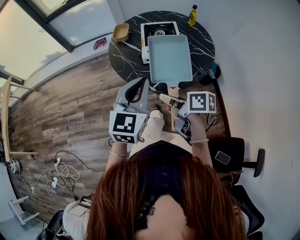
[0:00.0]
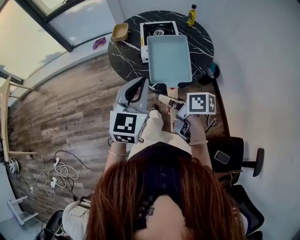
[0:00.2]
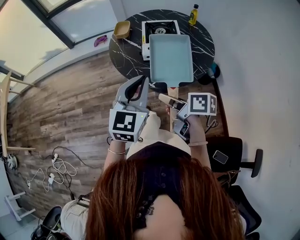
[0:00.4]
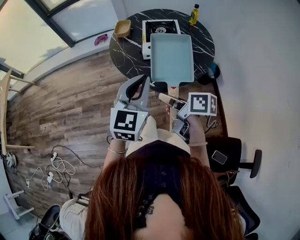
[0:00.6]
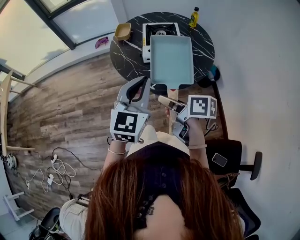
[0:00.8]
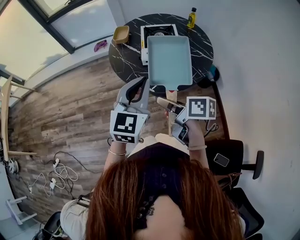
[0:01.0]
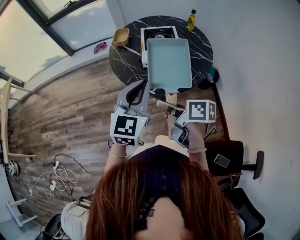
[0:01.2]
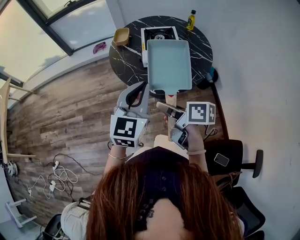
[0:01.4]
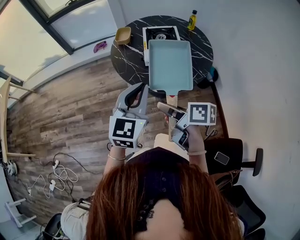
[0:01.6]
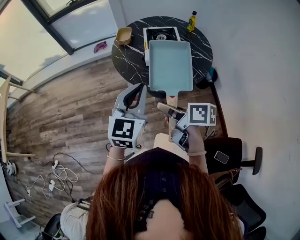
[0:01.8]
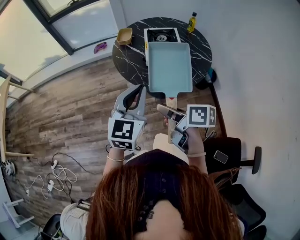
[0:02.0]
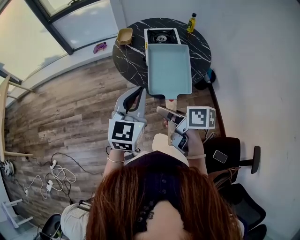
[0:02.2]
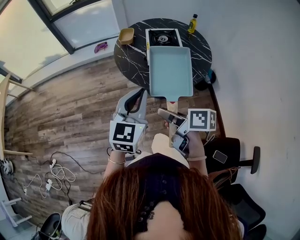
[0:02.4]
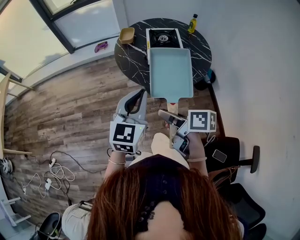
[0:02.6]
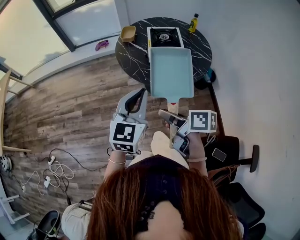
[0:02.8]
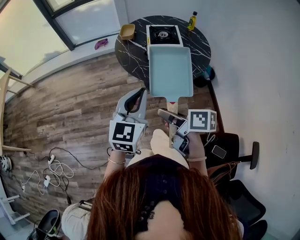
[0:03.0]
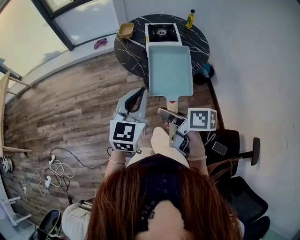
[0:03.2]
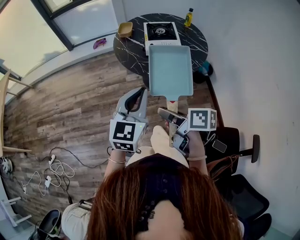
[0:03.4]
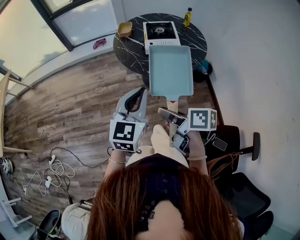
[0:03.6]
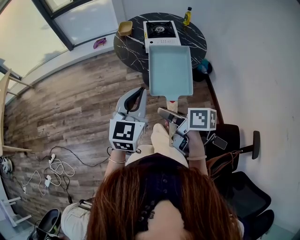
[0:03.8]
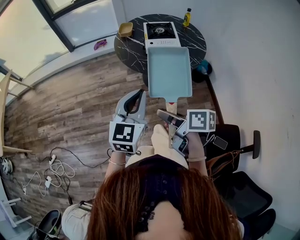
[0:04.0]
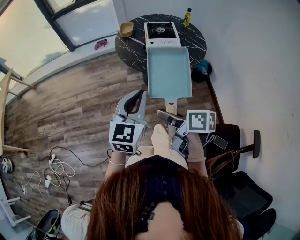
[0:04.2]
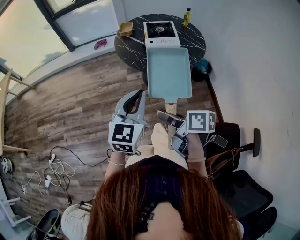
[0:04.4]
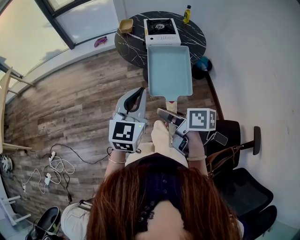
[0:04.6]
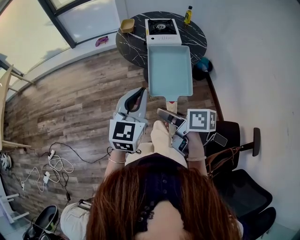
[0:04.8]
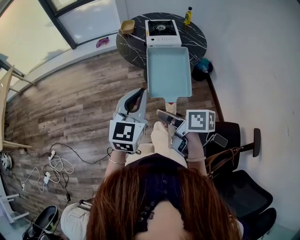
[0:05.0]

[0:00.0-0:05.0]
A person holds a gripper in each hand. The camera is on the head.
0:00.0 to 0:01.6: The left gripper ends up approximately 5 cm from where it was, while the right gripper moves about 10 cm.
0:01.6 to 0:03.4: The right gripper moves backward, roughly 15 cm. Meanwhile the left gripper is displaced backward and to the left by about 15 cm.
0:03.4 to 0:05.0: Both grippers travel together backward, approximately 5 cm.

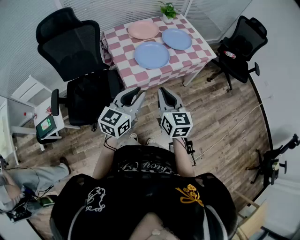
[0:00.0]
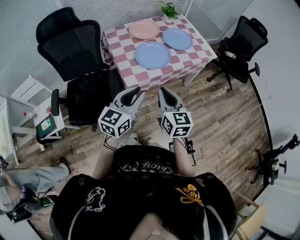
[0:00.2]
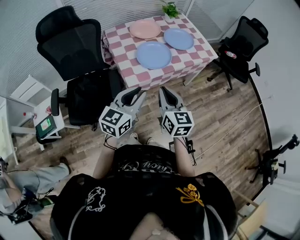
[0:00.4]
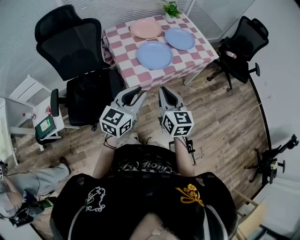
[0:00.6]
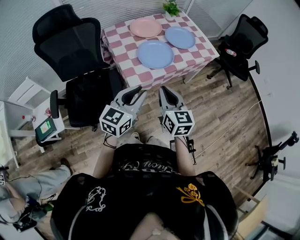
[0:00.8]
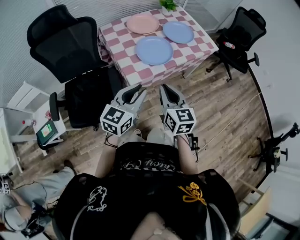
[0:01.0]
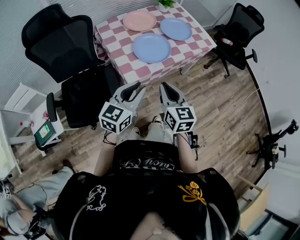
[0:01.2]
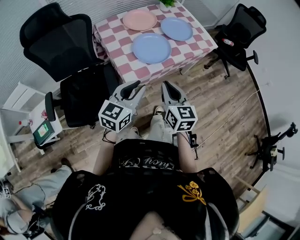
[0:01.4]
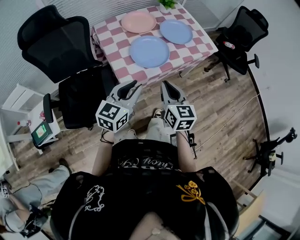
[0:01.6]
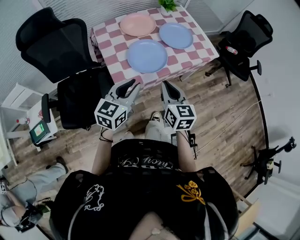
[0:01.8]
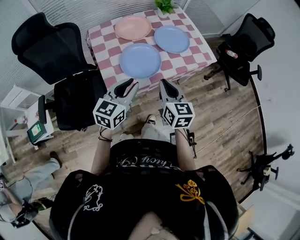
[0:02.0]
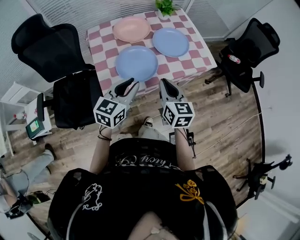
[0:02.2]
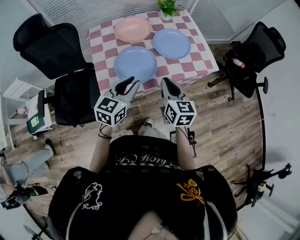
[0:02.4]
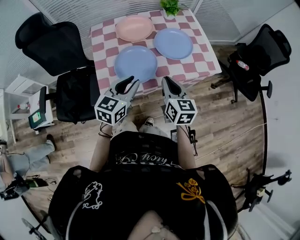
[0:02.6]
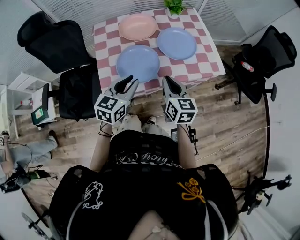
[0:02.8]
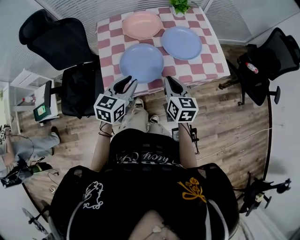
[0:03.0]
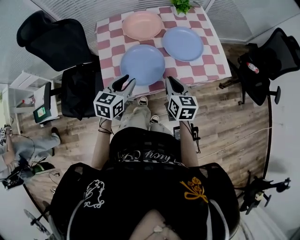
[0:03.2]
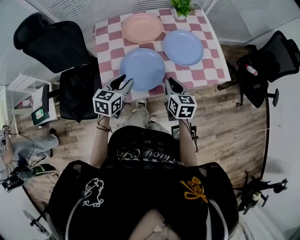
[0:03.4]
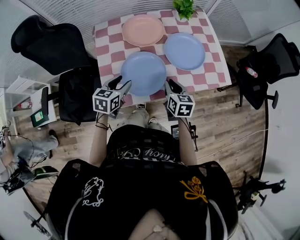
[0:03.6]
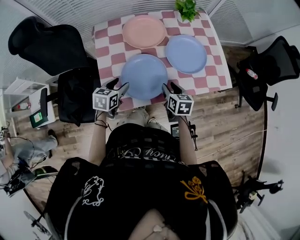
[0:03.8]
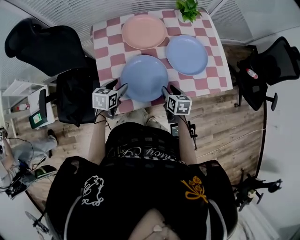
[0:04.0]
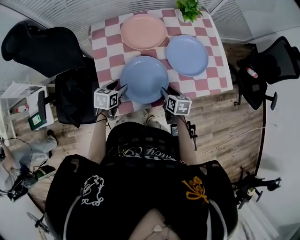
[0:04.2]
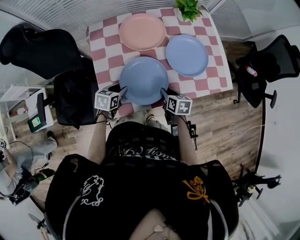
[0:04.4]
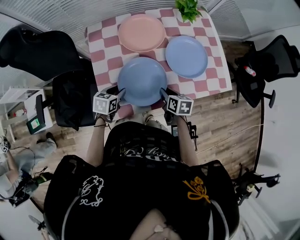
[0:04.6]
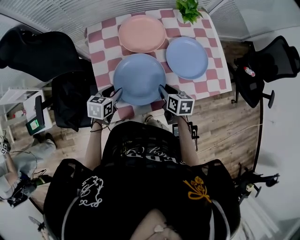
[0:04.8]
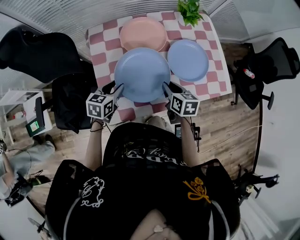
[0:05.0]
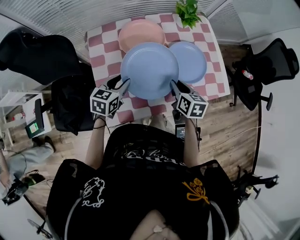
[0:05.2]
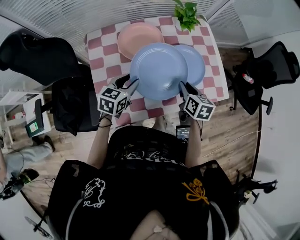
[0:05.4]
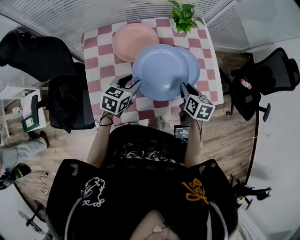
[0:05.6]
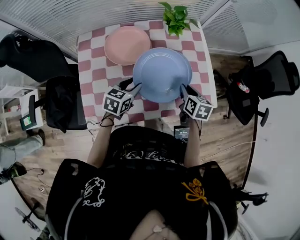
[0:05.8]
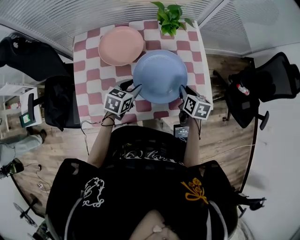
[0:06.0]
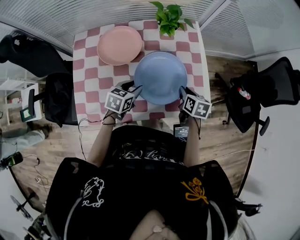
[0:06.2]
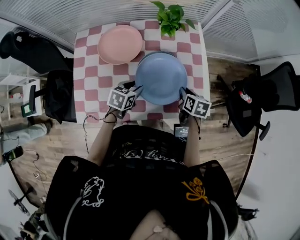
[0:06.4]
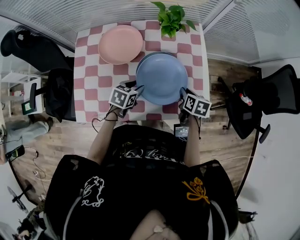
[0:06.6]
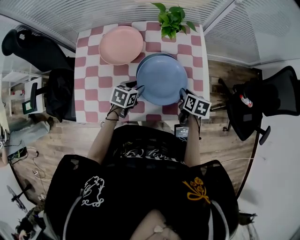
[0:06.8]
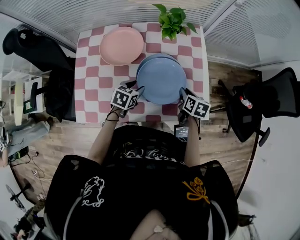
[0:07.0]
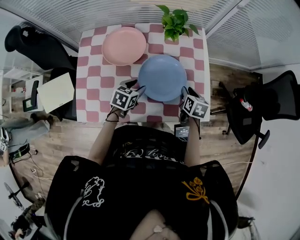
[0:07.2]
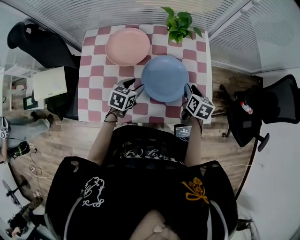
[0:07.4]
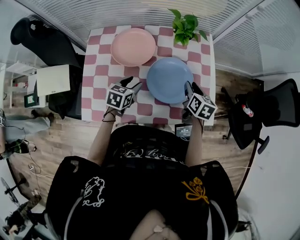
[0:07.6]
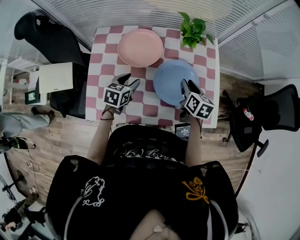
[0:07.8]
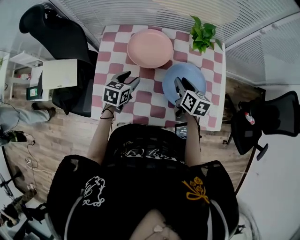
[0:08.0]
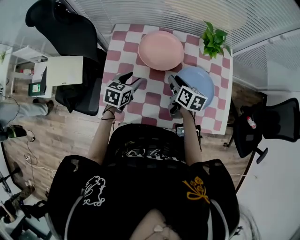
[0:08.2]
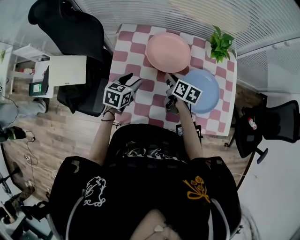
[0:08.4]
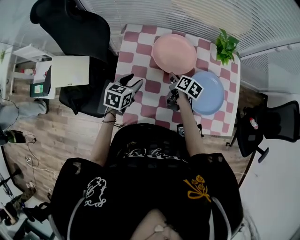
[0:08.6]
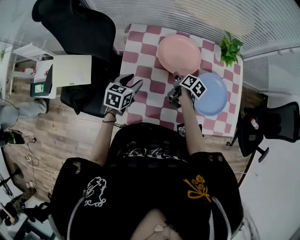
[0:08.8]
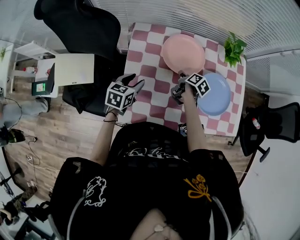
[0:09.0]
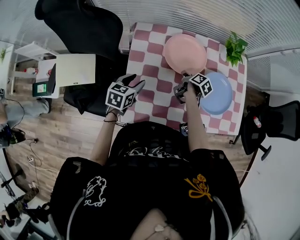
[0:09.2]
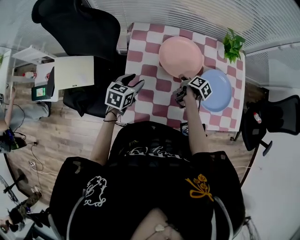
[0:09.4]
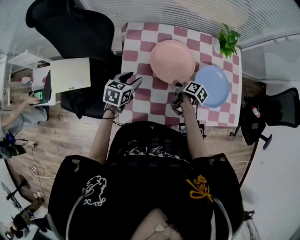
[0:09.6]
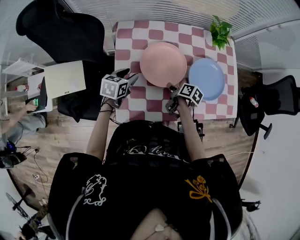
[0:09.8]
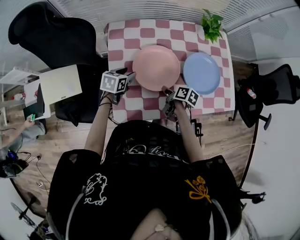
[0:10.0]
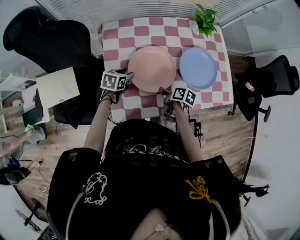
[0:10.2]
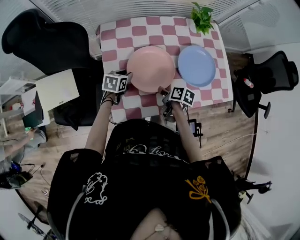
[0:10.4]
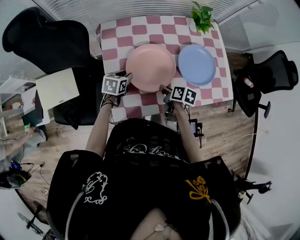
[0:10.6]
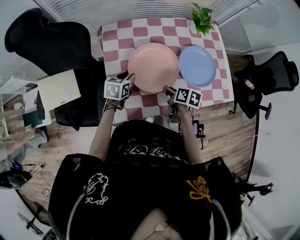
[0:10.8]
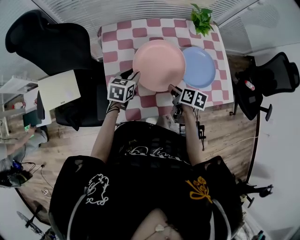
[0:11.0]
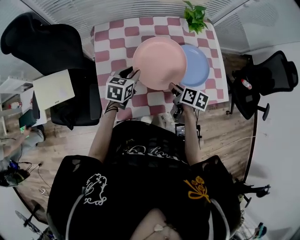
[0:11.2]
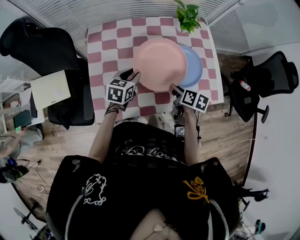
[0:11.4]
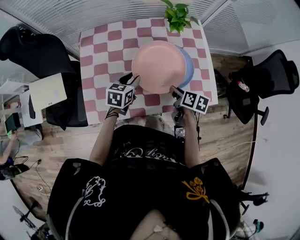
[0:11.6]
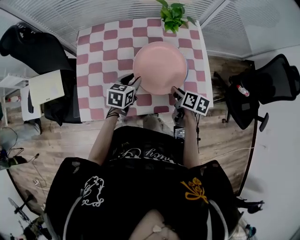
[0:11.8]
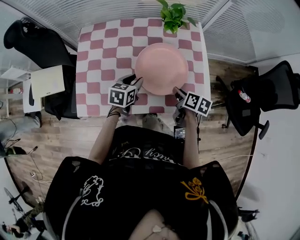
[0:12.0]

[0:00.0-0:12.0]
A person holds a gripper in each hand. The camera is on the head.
0:00.0 to 0:01.6: Both grippers move forward, approximately 10 cm.
0:01.6 to 0:03.0: The two grippers go approximately 20 cm forward and to the right. The left gripper rotates roughly 20 degrees.
0:03.0 to 0:04.4: The left gripper is displaced downward, to the left and forward by roughly 25 cm, and turns by approximately 30 degrees; the right gripper shifts some 20 cm downward and forward, and turns by approximately 30 degrees.
0:04.4 to 0:06.0: The grippers both shift to the right, forward and upward by some 25 cm.
0:06.0 to 0:07.6: The right gripper travels forward by approximately 5 cm.
0:07.6 to 0:09.0: The right gripper shifts roughly 30 cm to the left and downward, and changes its angle by roughly 40 degrees. Meanwhile the left gripper shifts some 25 cm to the left.
0:09.0 to 0:10.4: The right gripper goes roughly 20 cm backward. The left gripper heads downward, covering about 10 cm.
0:10.4 to 0:12.0: Both grippers move to the right, some 25 cm.

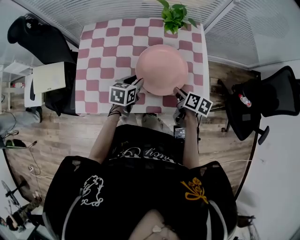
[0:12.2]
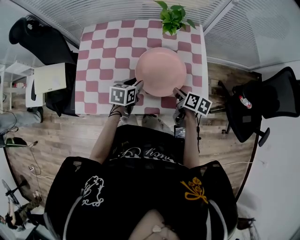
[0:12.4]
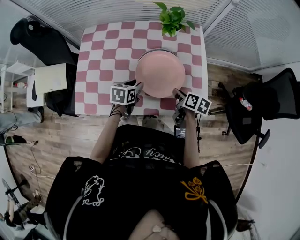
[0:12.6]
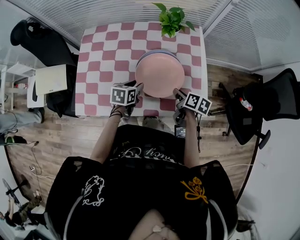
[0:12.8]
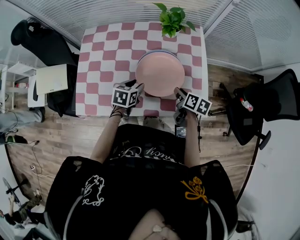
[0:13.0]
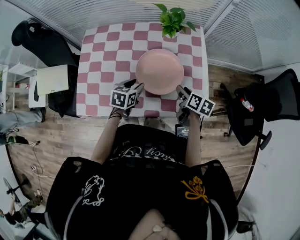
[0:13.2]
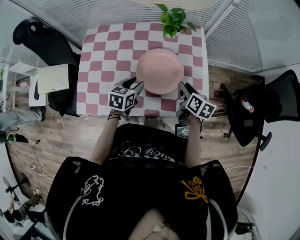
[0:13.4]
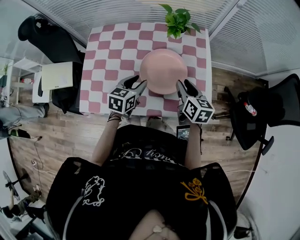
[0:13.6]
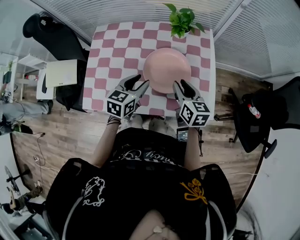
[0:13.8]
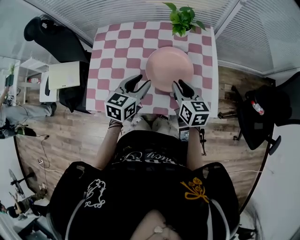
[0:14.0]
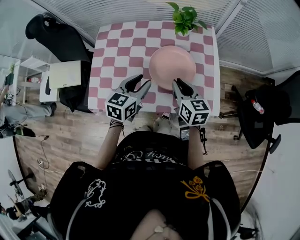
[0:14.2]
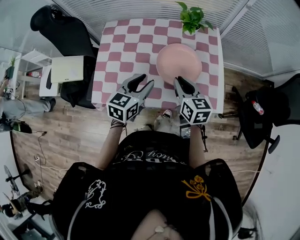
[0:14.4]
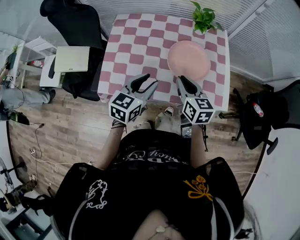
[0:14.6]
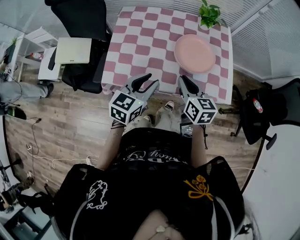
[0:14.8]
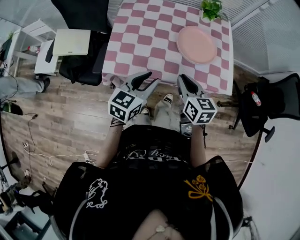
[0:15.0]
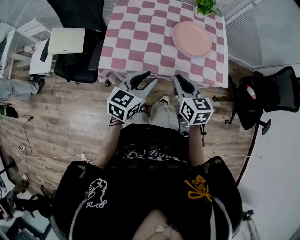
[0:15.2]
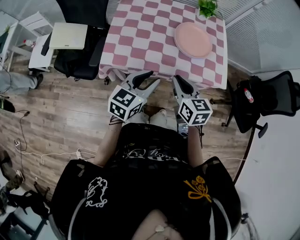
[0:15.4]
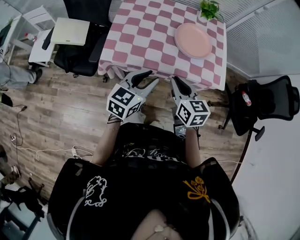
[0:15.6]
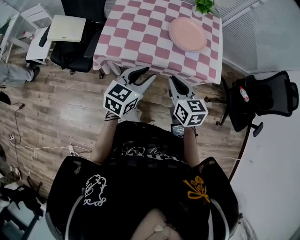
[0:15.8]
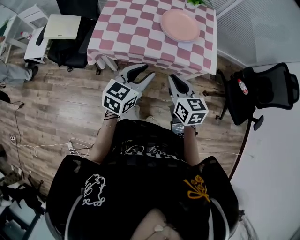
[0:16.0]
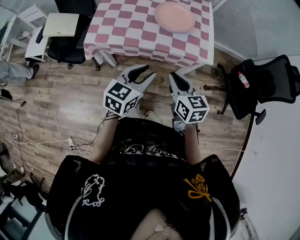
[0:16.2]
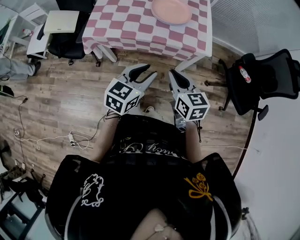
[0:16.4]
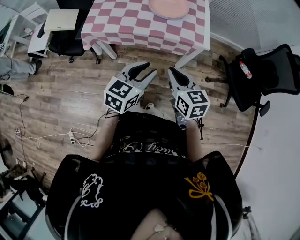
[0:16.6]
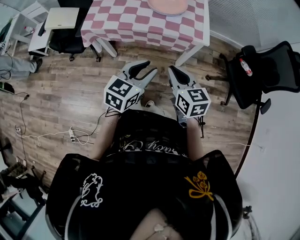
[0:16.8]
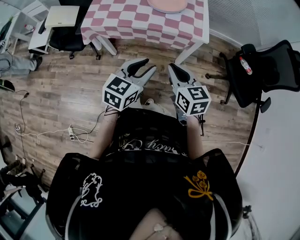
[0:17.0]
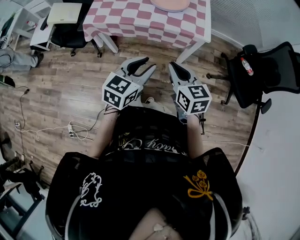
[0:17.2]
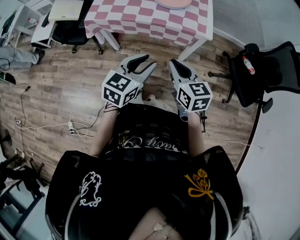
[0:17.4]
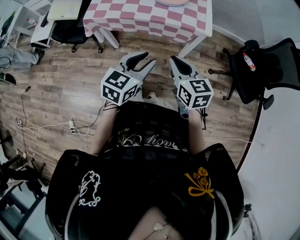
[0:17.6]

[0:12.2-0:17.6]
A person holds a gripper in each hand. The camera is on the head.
0:12.2 to 0:13.6: The right gripper travels upward by roughly 10 cm, and swivels approximately 30 degrees, while the left gripper moves upward, some 5 cm.
0:13.6 to 0:15.0: The two grippers go some 25 cm backward and to the left. The right gripper closes.
0:15.0 to 0:16.2: Both grippers move backward and to the right, some 20 cm.
0:16.2 to 0:17.6: The right gripper moves backward, roughly 10 cm. The left gripper is displaced backward and to the right by roughly 10 cm.

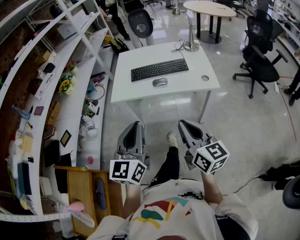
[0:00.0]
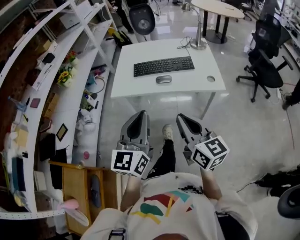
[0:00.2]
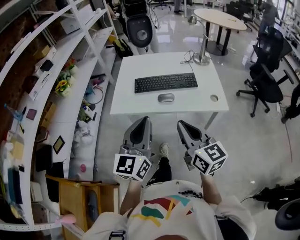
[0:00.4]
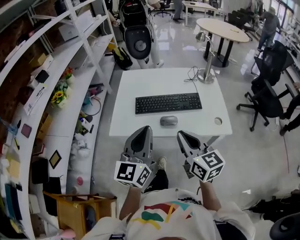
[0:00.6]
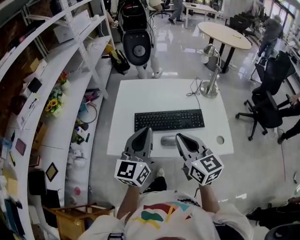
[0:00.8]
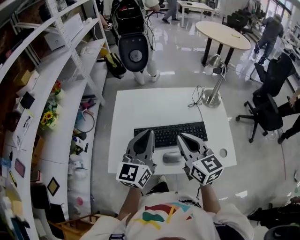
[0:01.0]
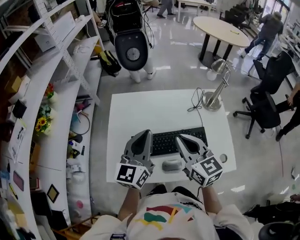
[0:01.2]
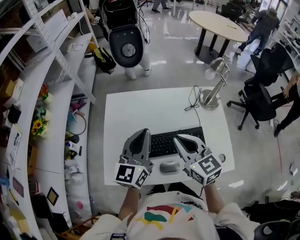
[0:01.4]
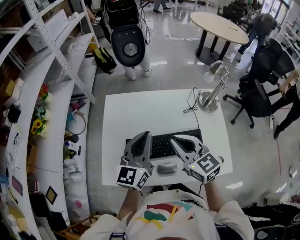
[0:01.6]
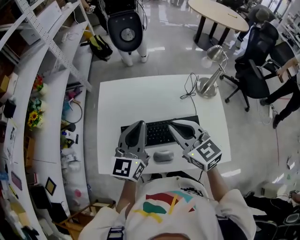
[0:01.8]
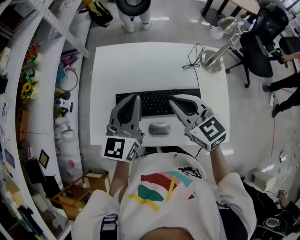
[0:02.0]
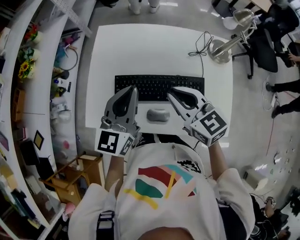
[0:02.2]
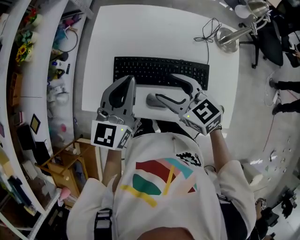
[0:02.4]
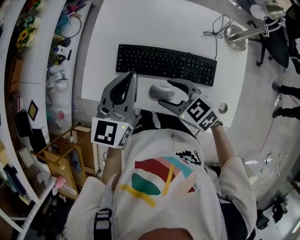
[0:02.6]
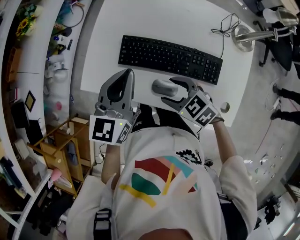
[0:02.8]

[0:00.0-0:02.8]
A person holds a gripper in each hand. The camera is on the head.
0:00.0 to 0:01.4: Both grippers are carried forward, some 60 cm. The right gripper changes its angle by roughly 20 degrees.
0:01.4 to 0:02.8: The left gripper travels downward by roughly 10 cm, and swivels about 20 degrees, while the right gripper goes some 20 cm downward, points its fingers roughly 30 degrees further downward, and opens up.
